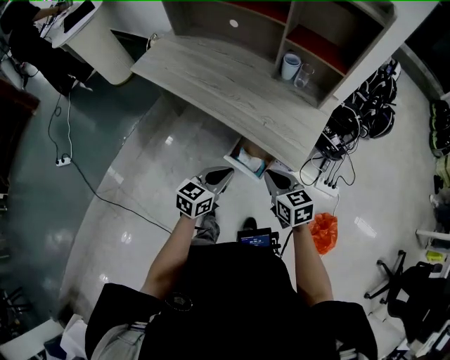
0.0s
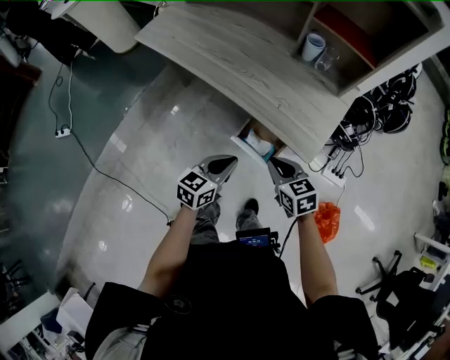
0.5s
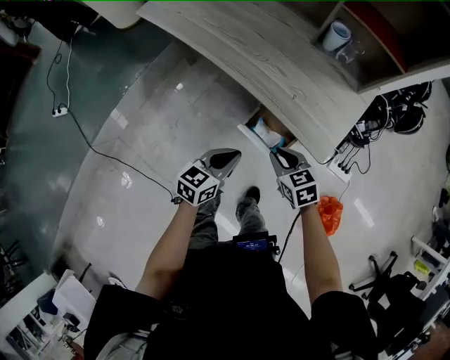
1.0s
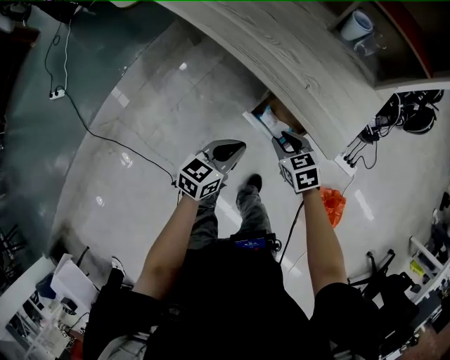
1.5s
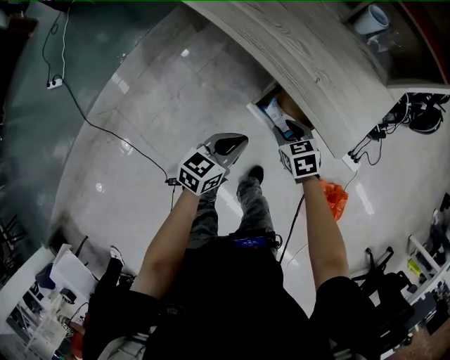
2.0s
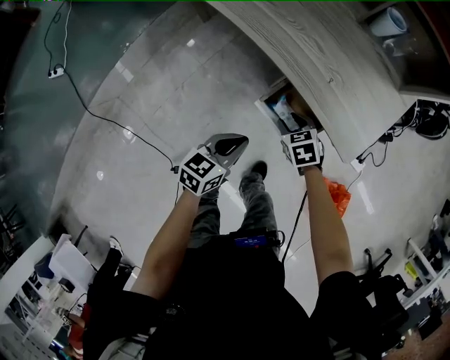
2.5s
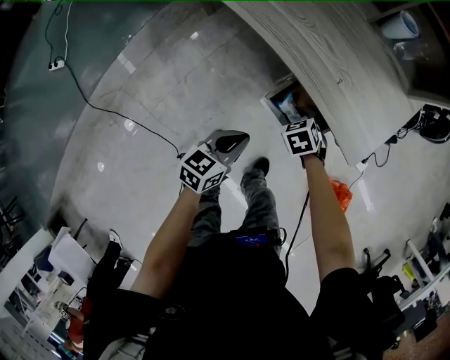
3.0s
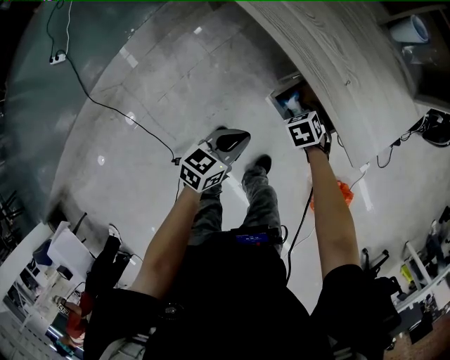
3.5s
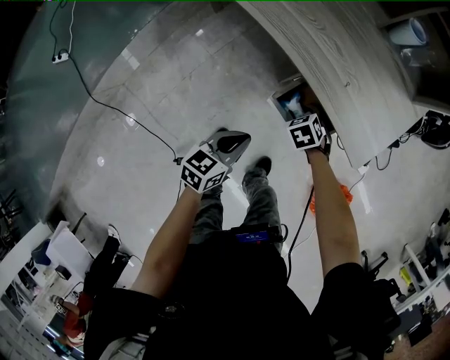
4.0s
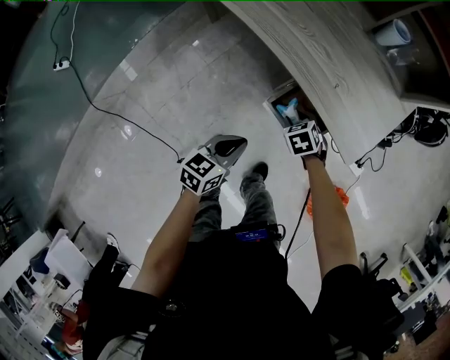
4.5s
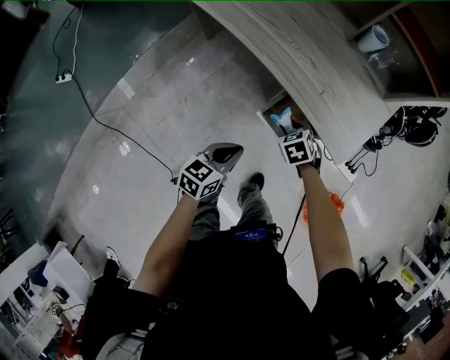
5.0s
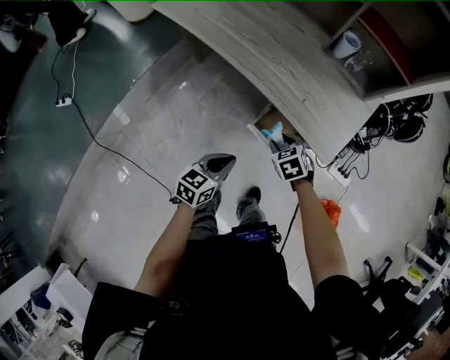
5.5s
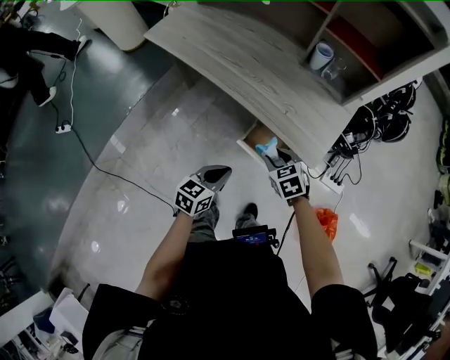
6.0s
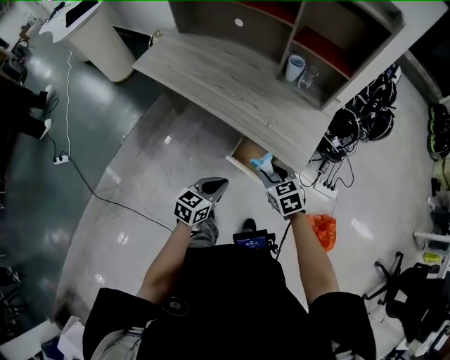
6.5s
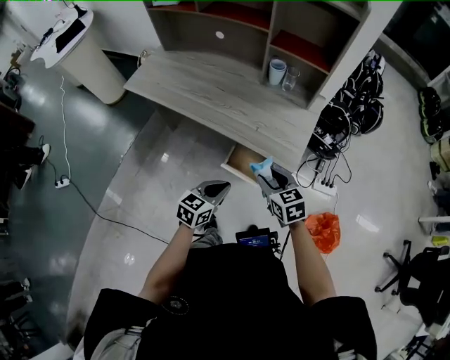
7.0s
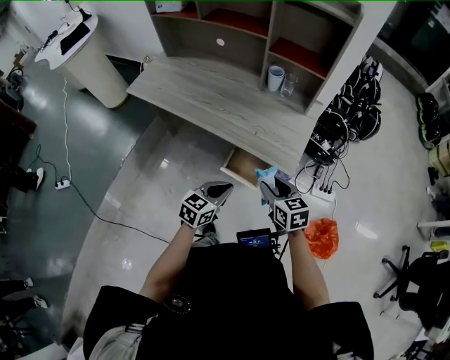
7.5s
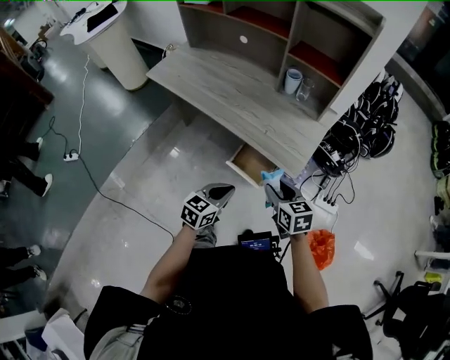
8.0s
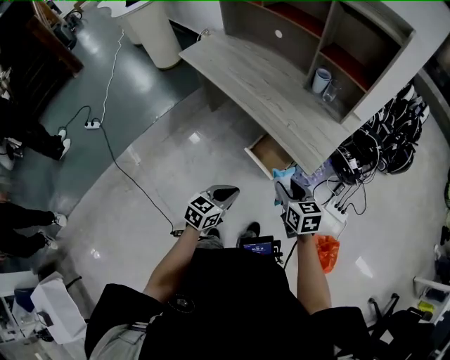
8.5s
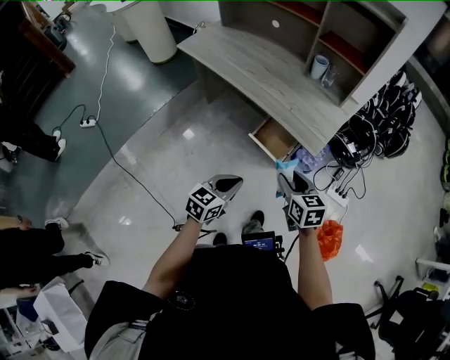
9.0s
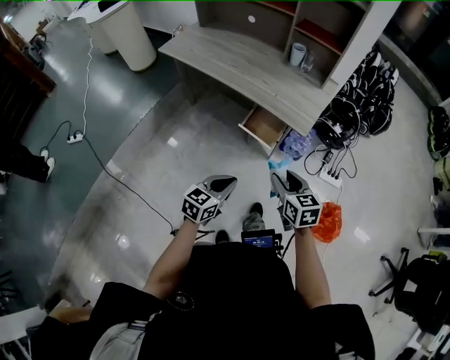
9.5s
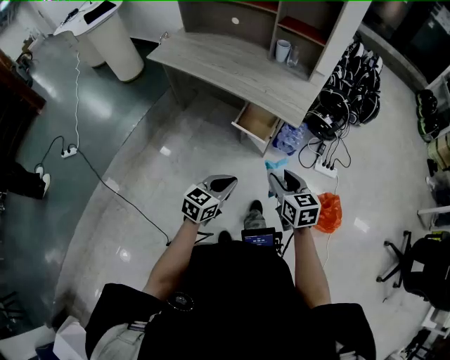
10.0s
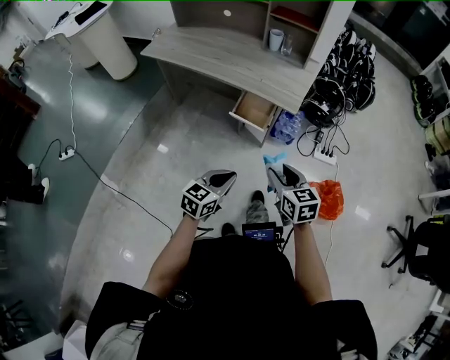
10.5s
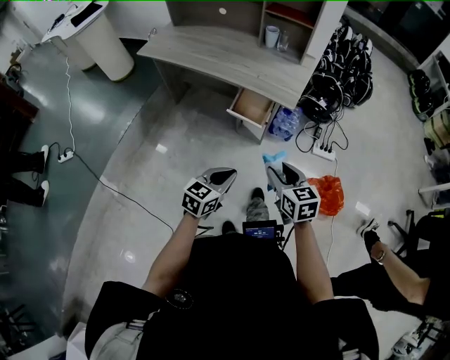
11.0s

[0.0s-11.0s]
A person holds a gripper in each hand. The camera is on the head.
0.0s to 2.0s: The right gripper heads downward, covering approximately 25 cm, rotates about 30 degrees, and opens up, while the left gripper travels downward by approximately 15 cm.
2.0s to 3.5s: The left gripper shifts by approximately 5 cm. Meanwhile the right gripper goes roughly 10 cm downward, and rotates some 20 degrees.
3.5s to 5.5s: The left gripper heads upward, covering approximately 10 cm. Meanwhile the right gripper is displaced upward by approximately 15 cm.
5.5s to 7.5s: The left gripper goes roughly 10 cm upward and to the right. Meanwhile the right gripper heads upward, to the right and backward, covering roughly 20 cm, and rotates roughly 40 degrees.
7.5s to 9.0s: Both grippers move backward, some 10 cm.
9.0s to 11.0s: Both grippers move backward, some 15 cm.

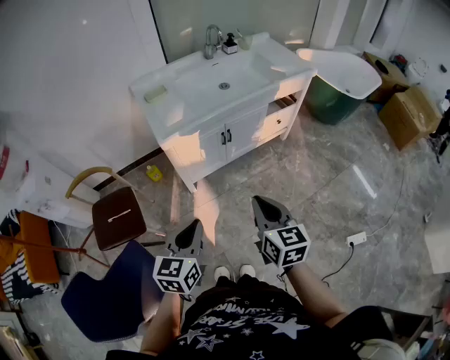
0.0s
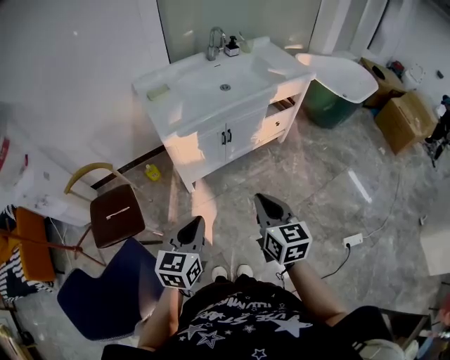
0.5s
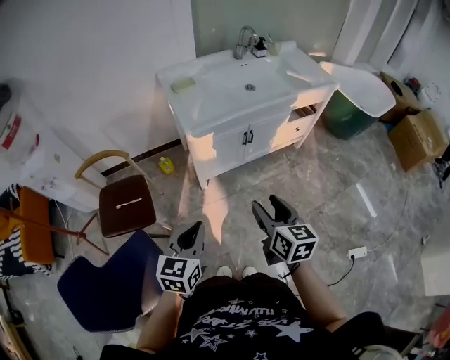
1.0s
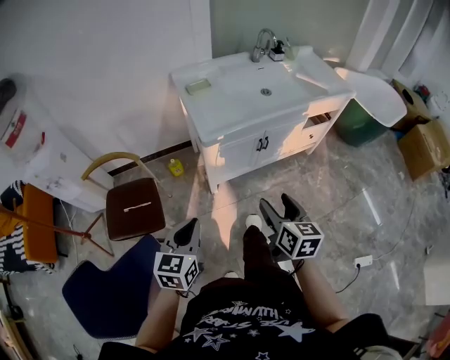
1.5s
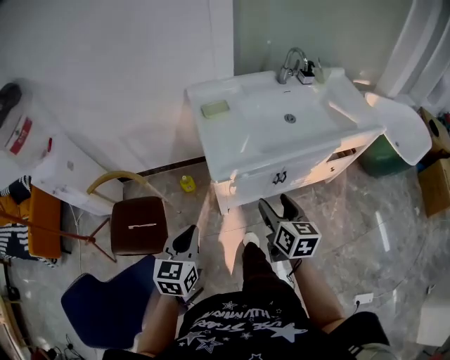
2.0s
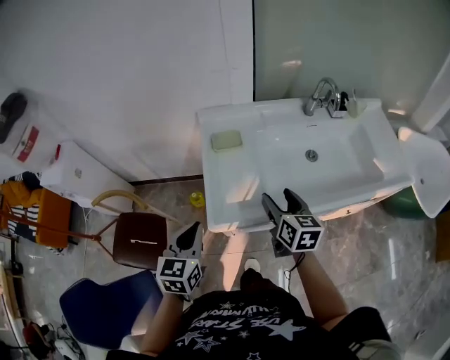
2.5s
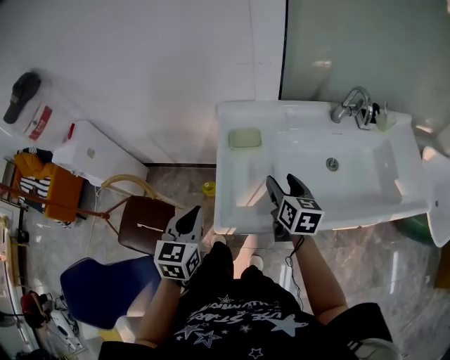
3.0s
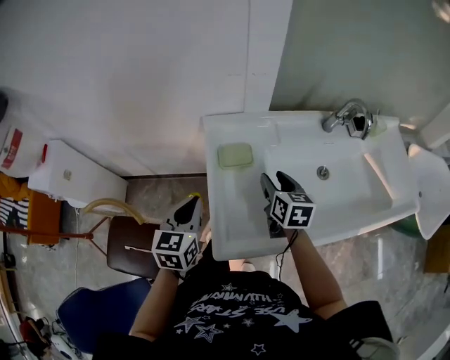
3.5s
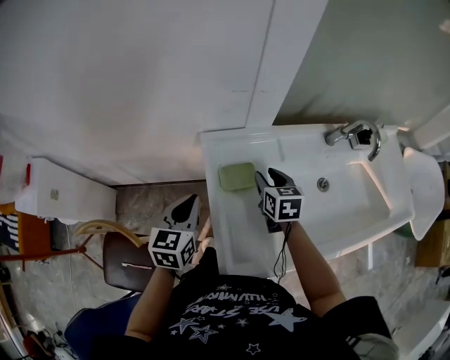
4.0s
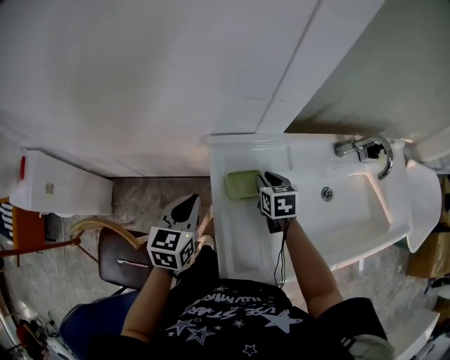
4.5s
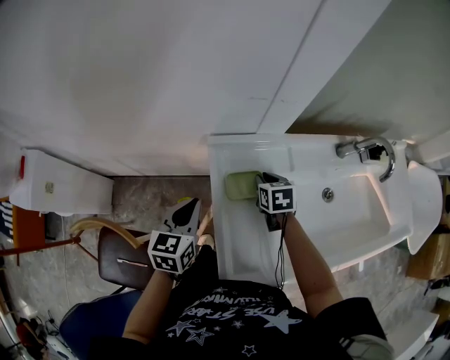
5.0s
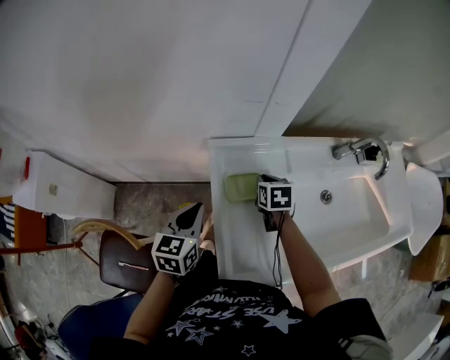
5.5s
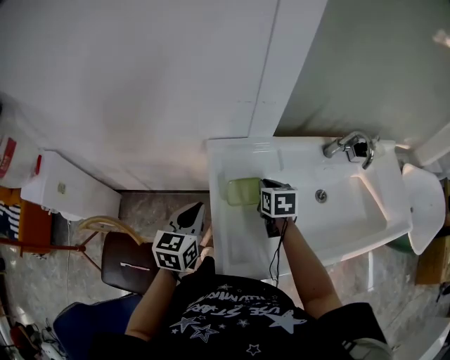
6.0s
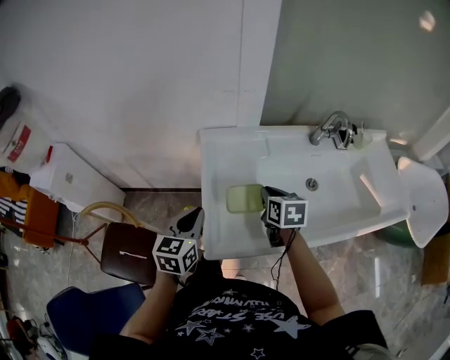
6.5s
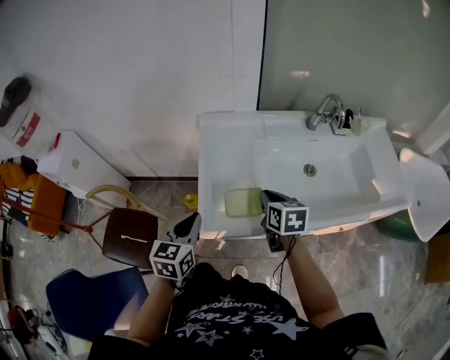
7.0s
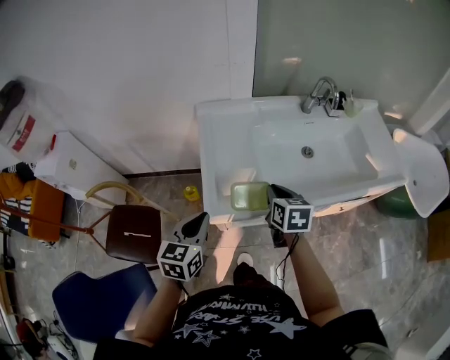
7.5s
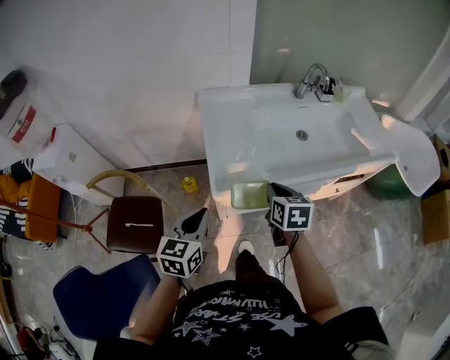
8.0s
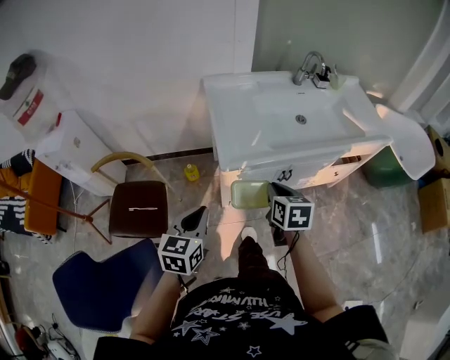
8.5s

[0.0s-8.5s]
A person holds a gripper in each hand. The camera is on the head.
0.0s to 2.0s: The right gripper shifts some 30 cm forward and to the left, and opens its fingers. Meanwhile the left gripper shifts about 25 cm to the left and forward.
2.0s to 4.0s: The pair of grippers is taken forward, some 50 cm. The right gripper changes its angle by some 20 degrees, and closes its fingers.
4.0s to 6.5s: The left gripper goes approximately 15 cm backward and to the right; the right gripper travels backward by roughly 15 cm, and closes its fingers.
6.5s to 8.5s: The two grippers go about 30 cm backward.

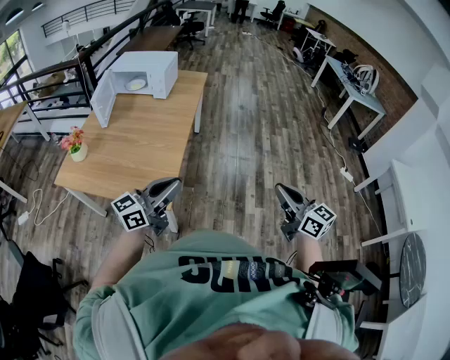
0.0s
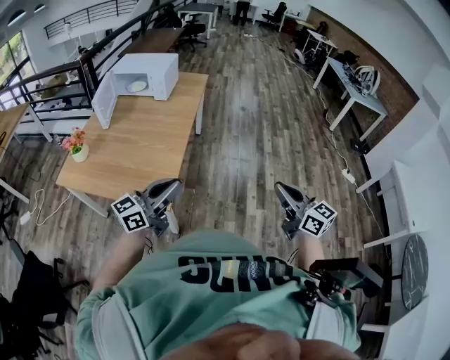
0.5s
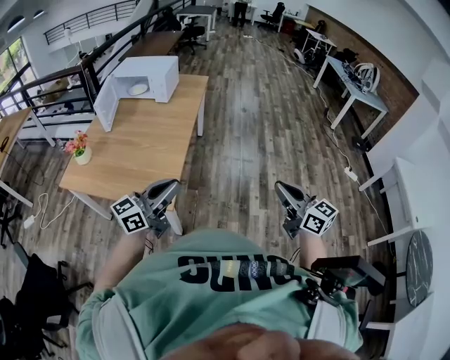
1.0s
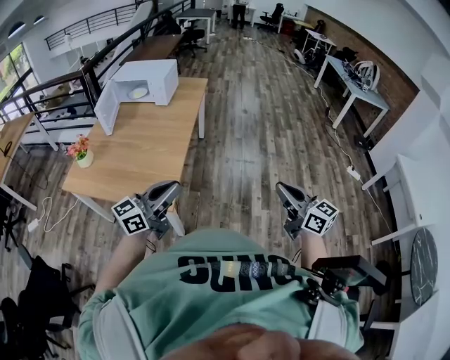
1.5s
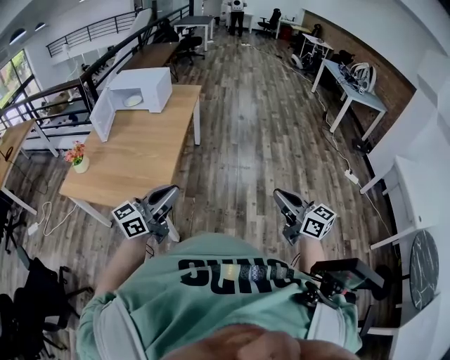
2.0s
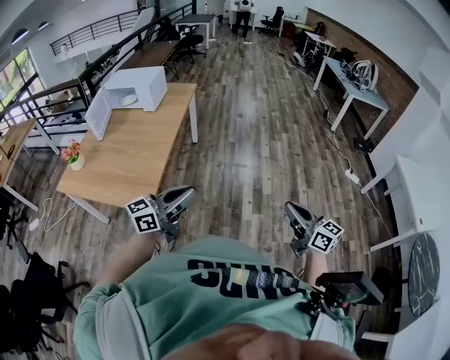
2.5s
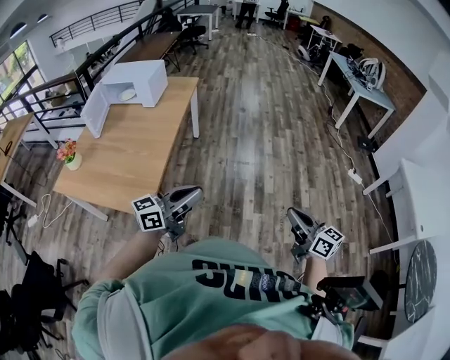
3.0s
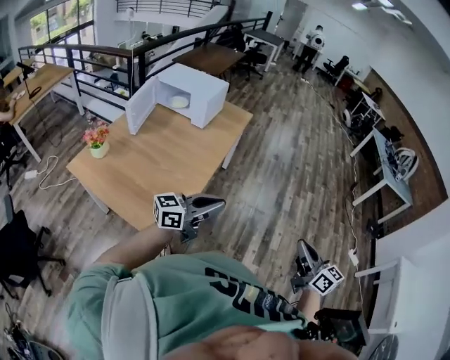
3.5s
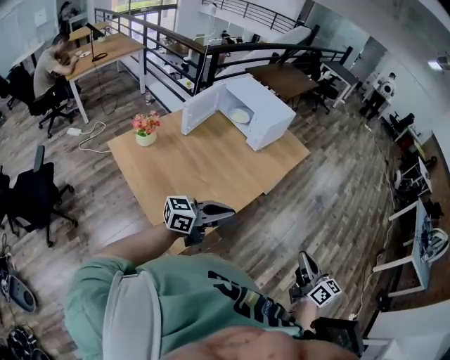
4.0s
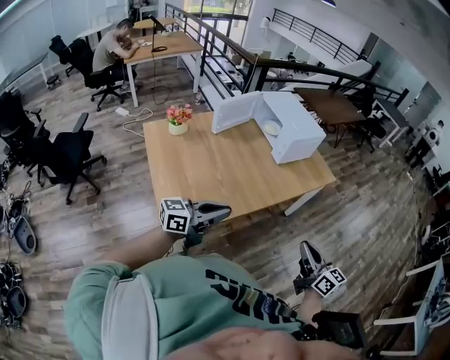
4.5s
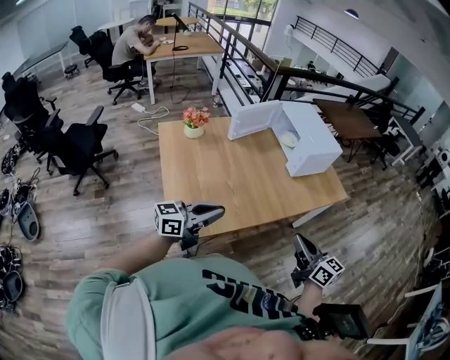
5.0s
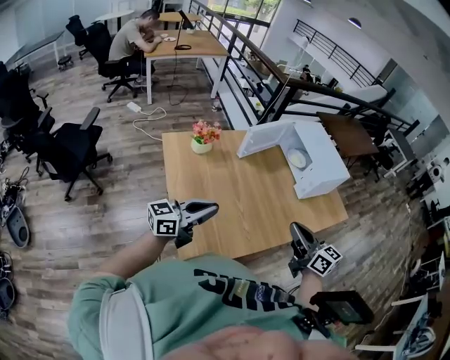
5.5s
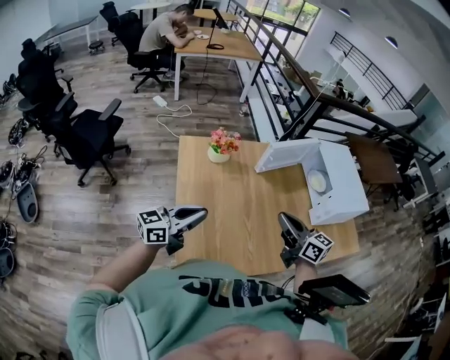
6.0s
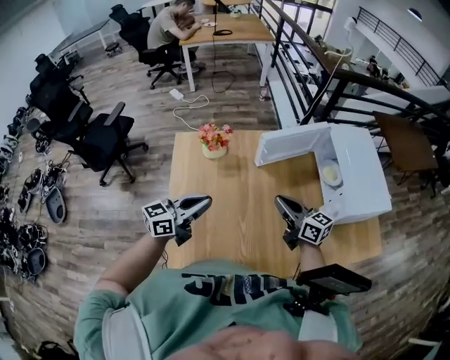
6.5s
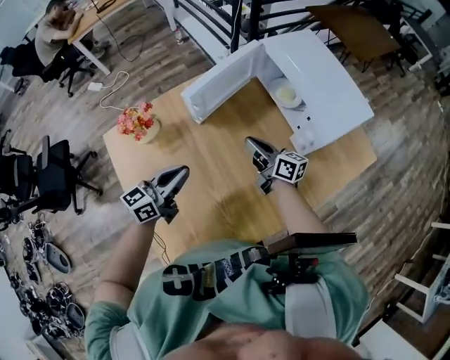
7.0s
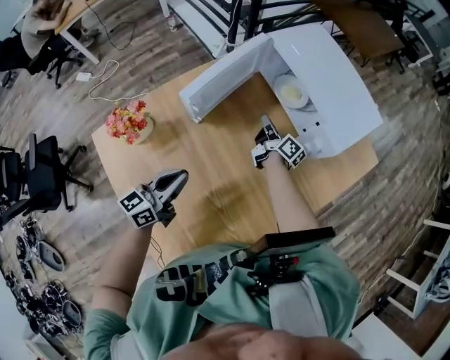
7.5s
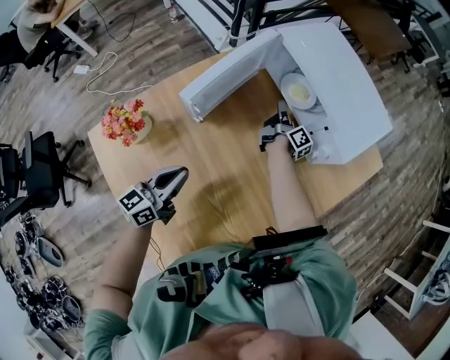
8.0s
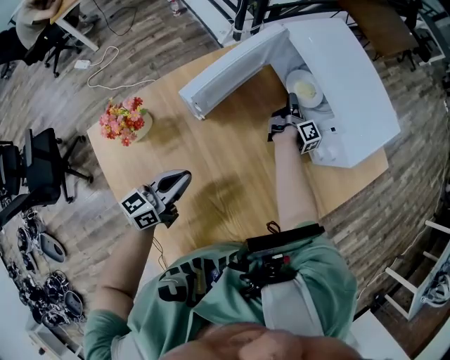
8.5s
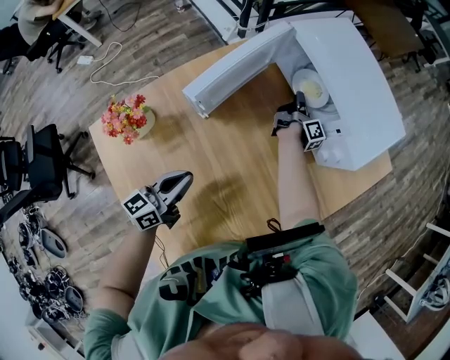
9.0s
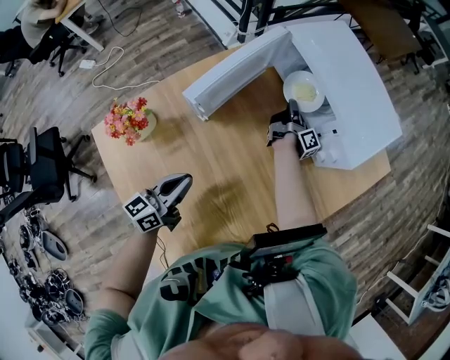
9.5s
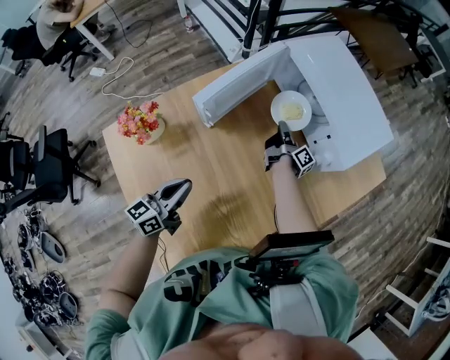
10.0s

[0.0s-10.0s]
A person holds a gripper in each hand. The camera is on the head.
0.0s to 2.0s: The grippers both shift to the right by approximately 10 cm.
2.0s to 4.0s: The grippers both shift forward and to the left by roughly 35 cm.
4.0s to 6.0s: The right gripper moves some 50 cm, and swivels approximately 50 degrees. Meanwhile the left gripper changes place by about 30 cm, and rotates roughly 50 degrees.
6.0s to 8.0s: The right gripper shifts by roughly 60 cm, and turns by roughly 80 degrees. The left gripper changes place by about 35 cm.
